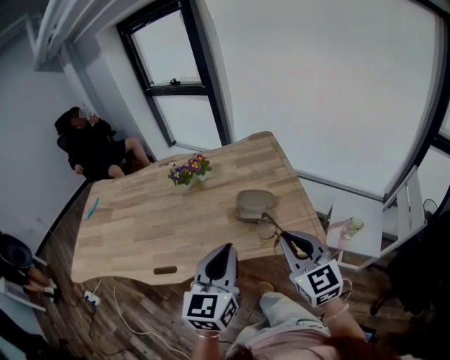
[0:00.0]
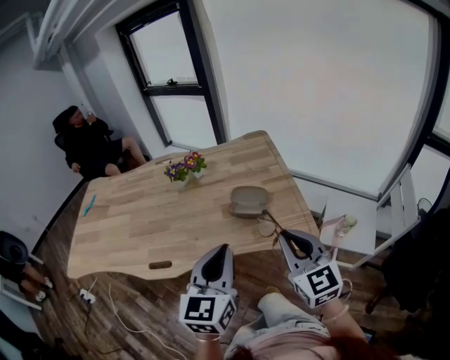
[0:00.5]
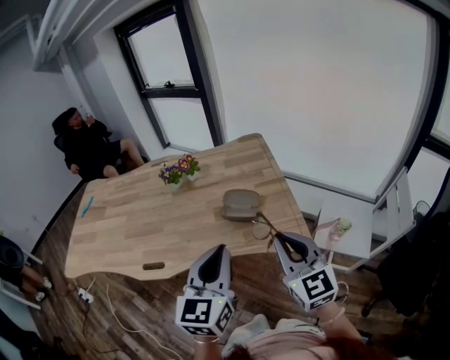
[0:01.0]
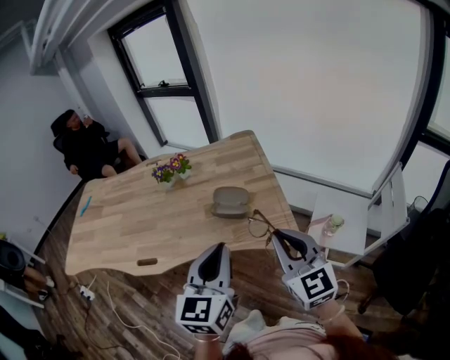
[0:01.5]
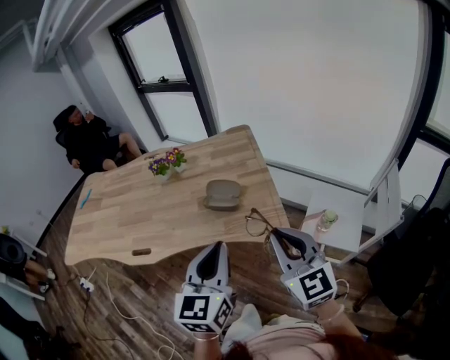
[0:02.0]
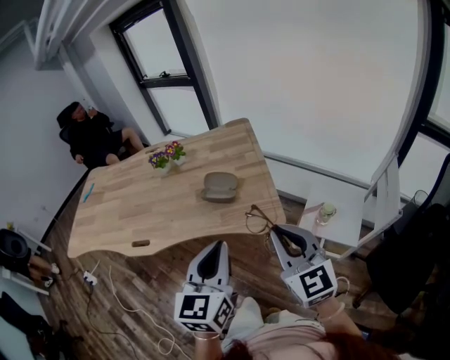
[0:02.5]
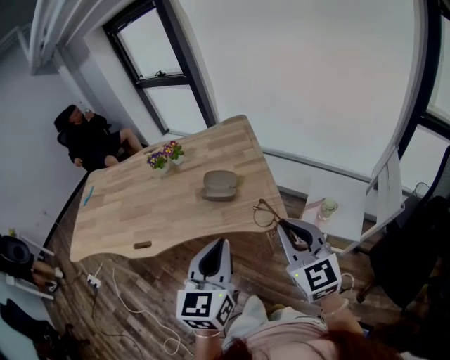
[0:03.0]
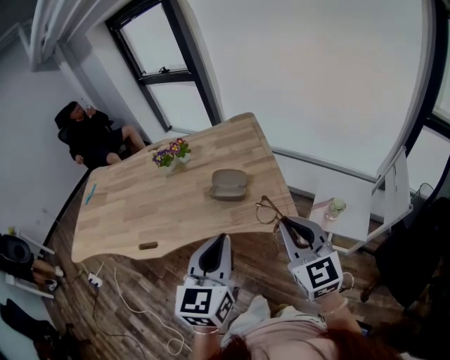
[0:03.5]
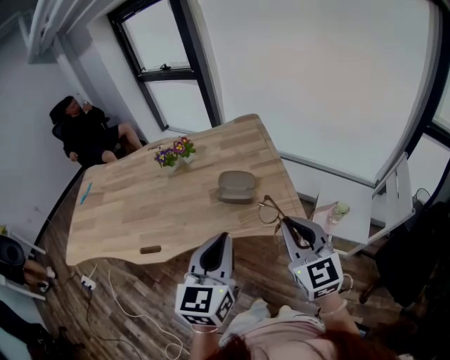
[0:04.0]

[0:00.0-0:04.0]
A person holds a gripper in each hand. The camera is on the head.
0:00.0 to 0:02.0: Both grippers travel together to the right and backward, some 15 cm.
0:02.0 to 0:04.0: The left gripper shifts about 5 cm to the left. The right gripper changes place by roughly 5 cm.

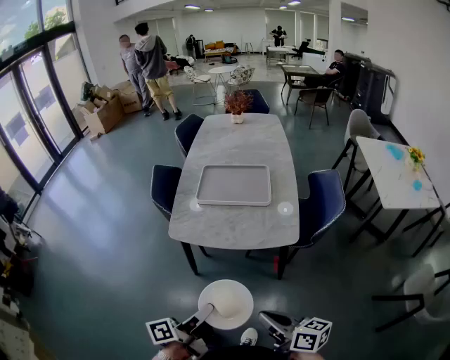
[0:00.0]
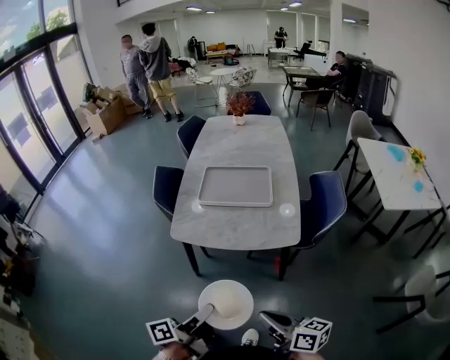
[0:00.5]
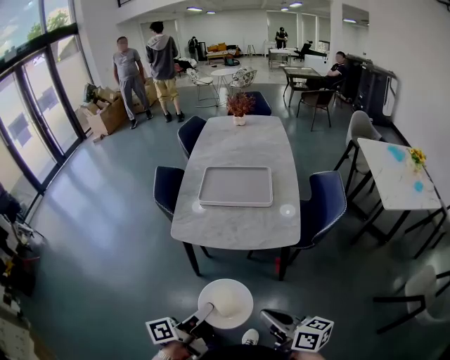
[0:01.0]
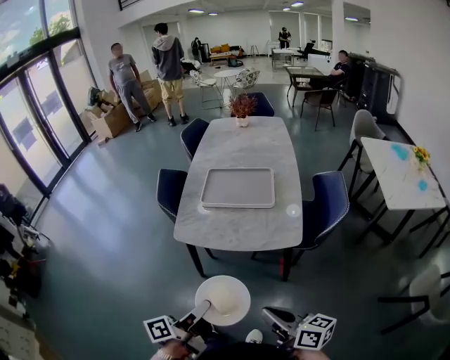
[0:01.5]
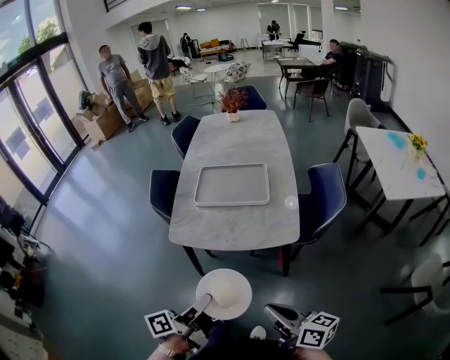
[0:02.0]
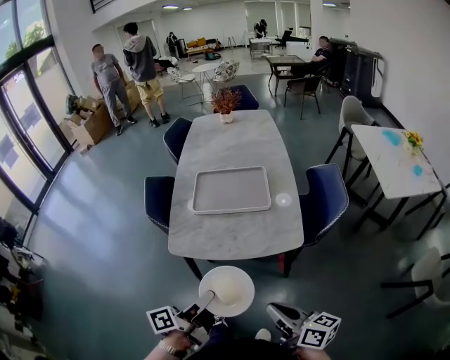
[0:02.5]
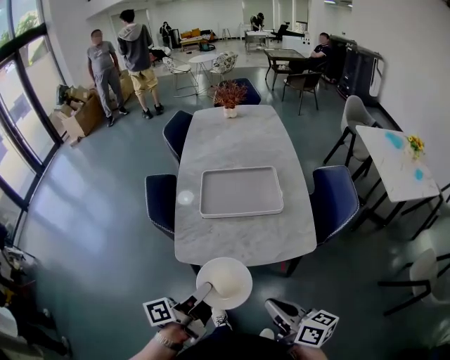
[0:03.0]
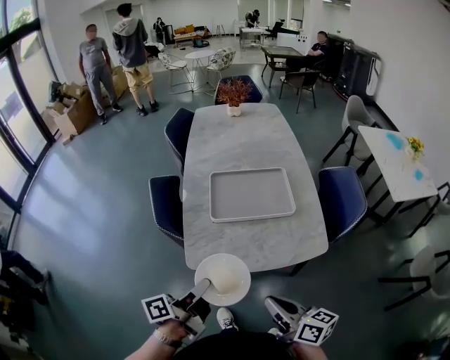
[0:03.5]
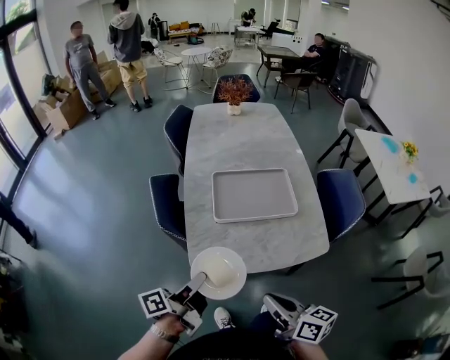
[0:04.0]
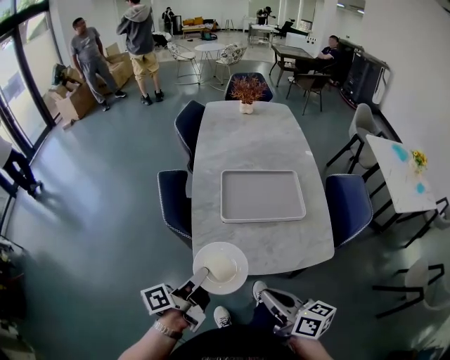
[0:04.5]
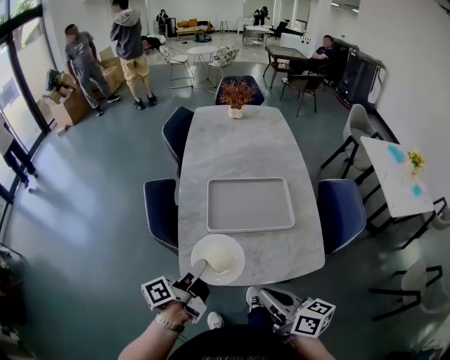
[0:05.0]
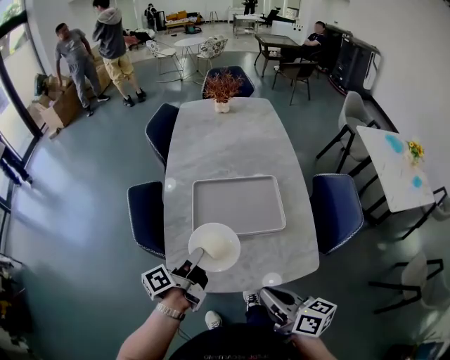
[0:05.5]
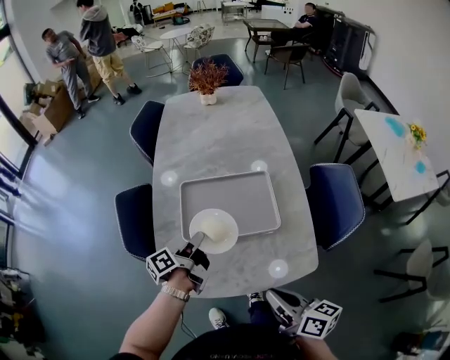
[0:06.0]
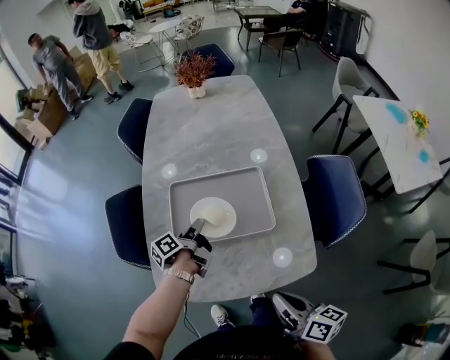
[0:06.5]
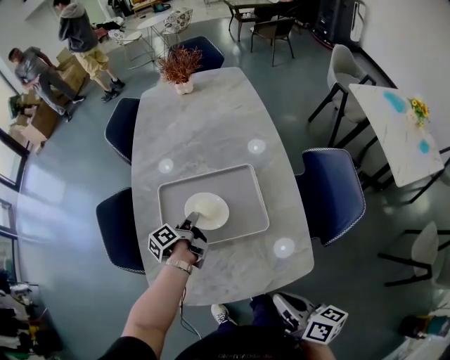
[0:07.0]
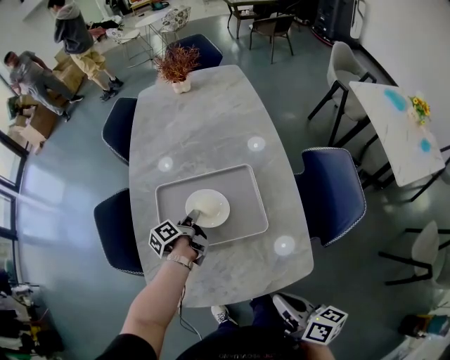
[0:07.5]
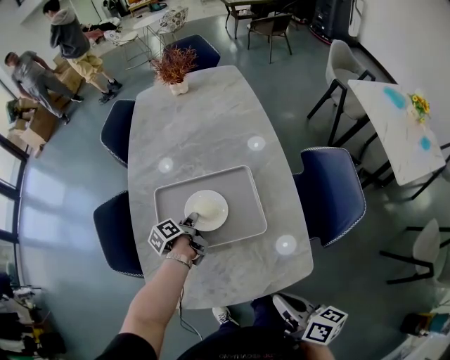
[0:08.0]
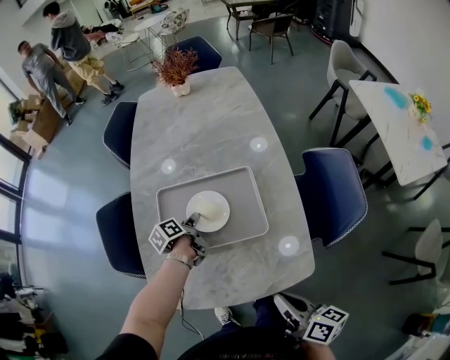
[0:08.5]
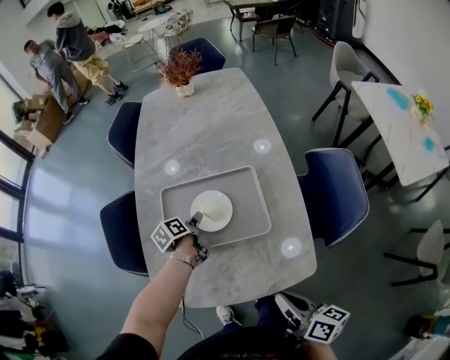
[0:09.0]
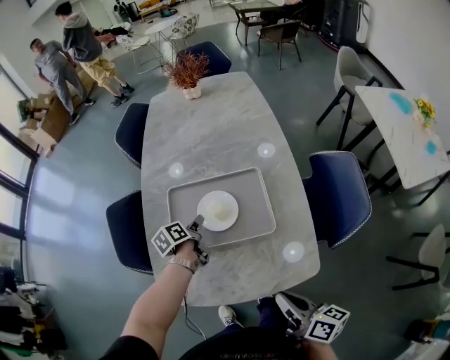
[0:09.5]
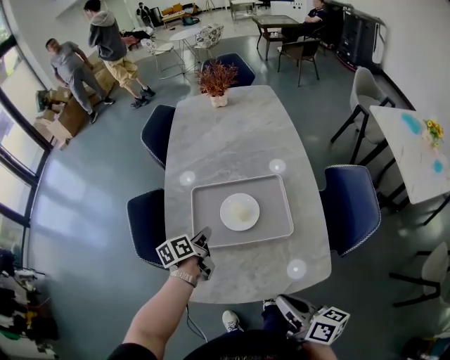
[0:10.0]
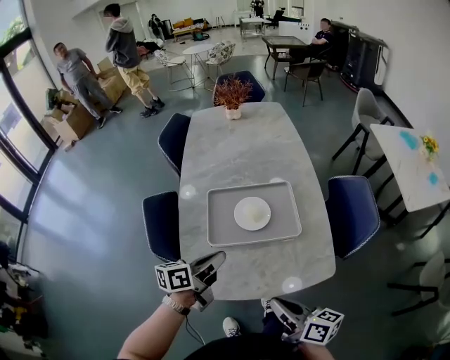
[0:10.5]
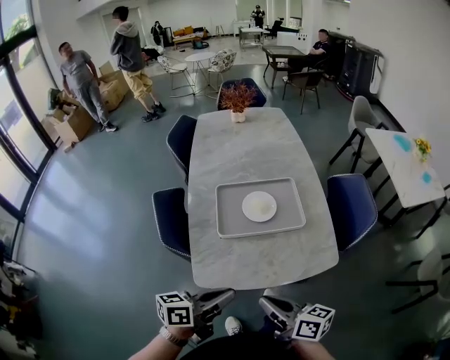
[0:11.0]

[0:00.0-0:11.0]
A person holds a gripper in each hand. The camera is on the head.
0:02.0 to 0:03.5: The right gripper changes place by some 20 cm.
0:03.5 to 0:05.5: The right gripper shifts by about 10 cm.
0:05.5 to 0:07.5: The right gripper ends up some 15 cm from where it was.
0:09.0 to 0:11.0: The right gripper changes place by about 20 cm.

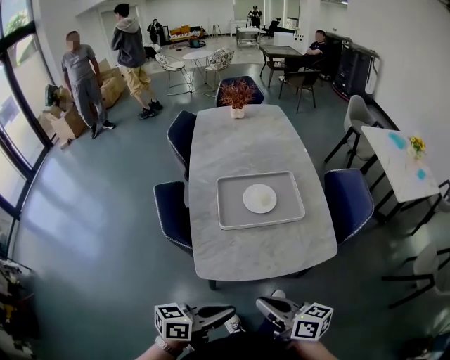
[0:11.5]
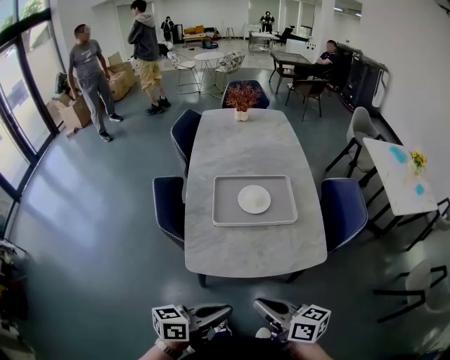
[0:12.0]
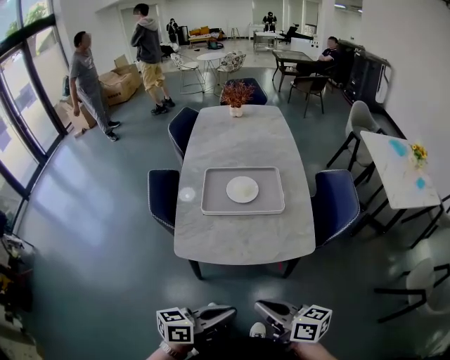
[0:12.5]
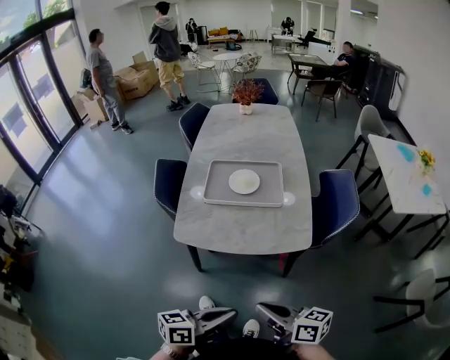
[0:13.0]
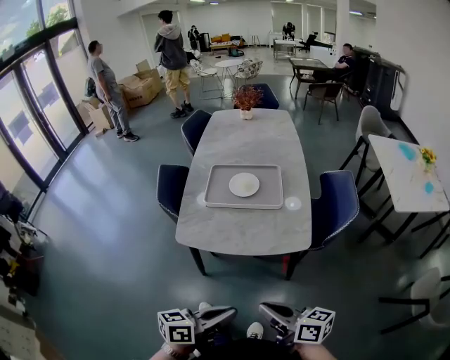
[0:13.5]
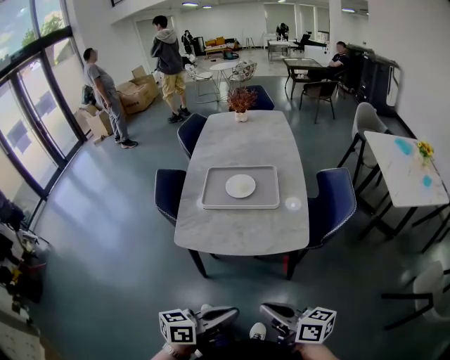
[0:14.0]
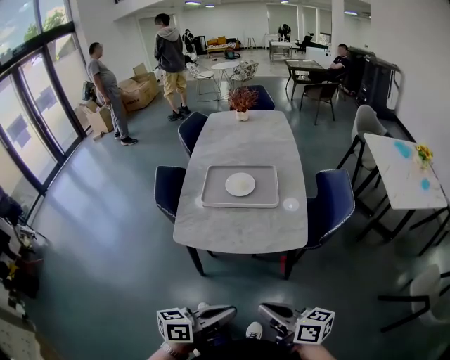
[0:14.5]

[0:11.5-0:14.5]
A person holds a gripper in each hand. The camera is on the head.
0:11.5 to 0:13.0: The right gripper changes place by some 20 cm.

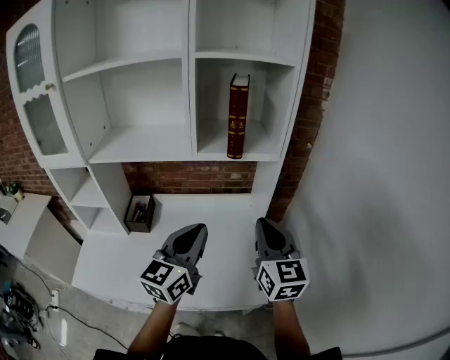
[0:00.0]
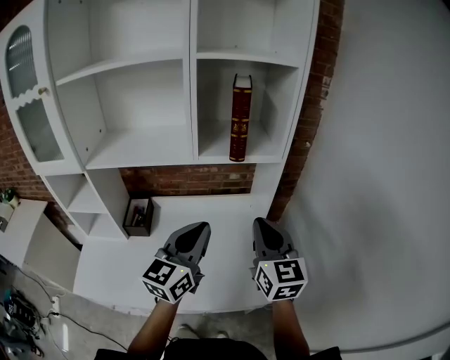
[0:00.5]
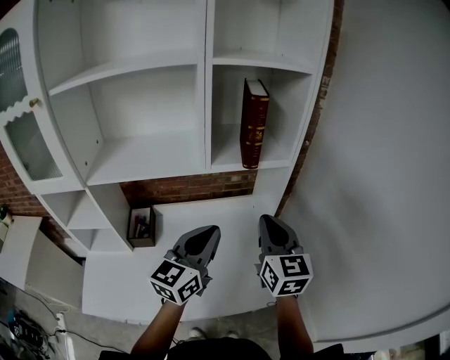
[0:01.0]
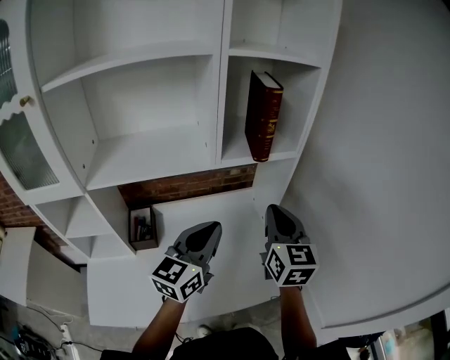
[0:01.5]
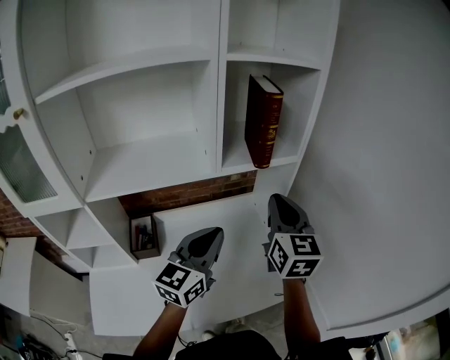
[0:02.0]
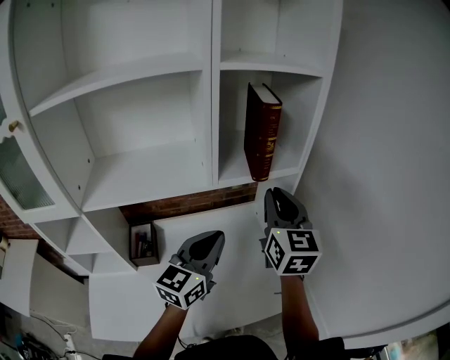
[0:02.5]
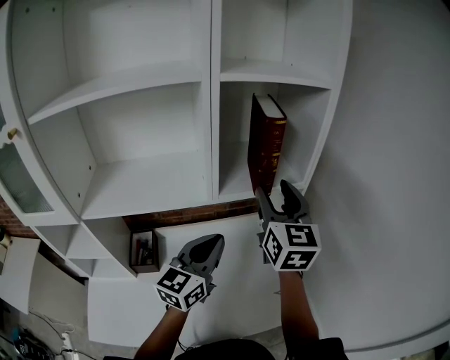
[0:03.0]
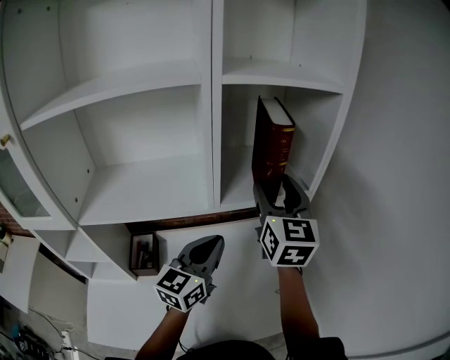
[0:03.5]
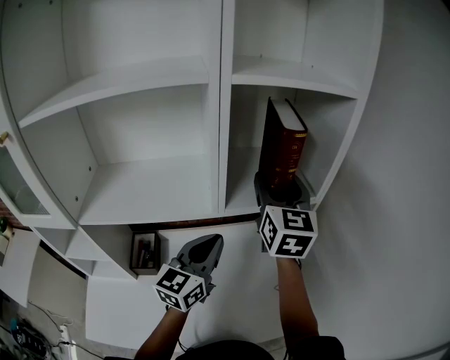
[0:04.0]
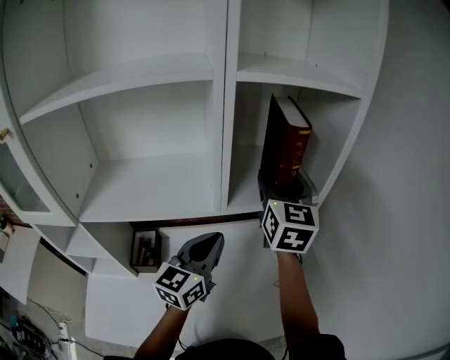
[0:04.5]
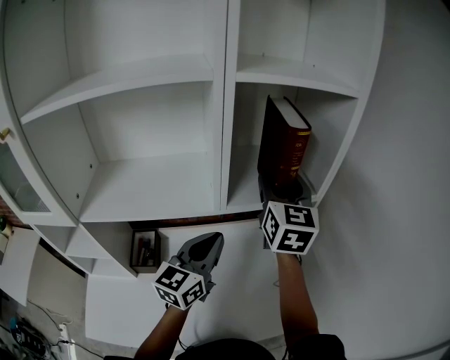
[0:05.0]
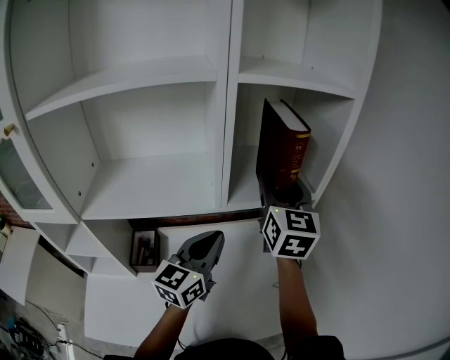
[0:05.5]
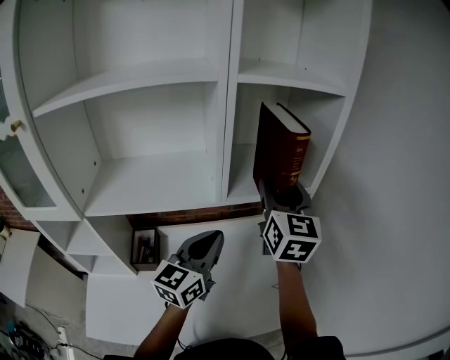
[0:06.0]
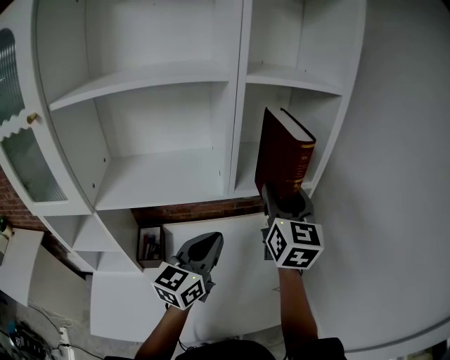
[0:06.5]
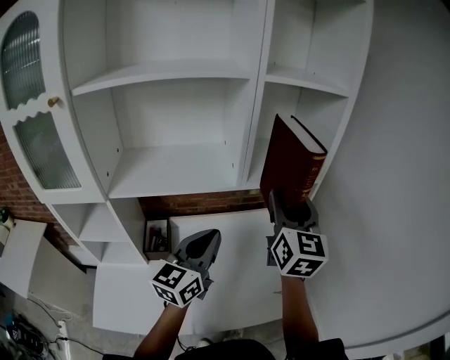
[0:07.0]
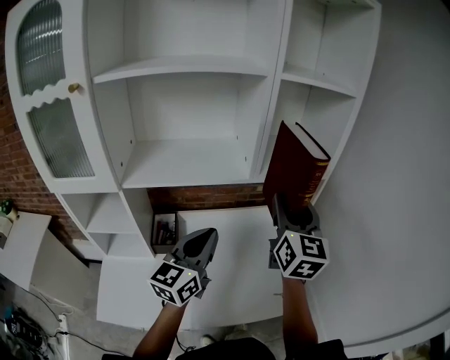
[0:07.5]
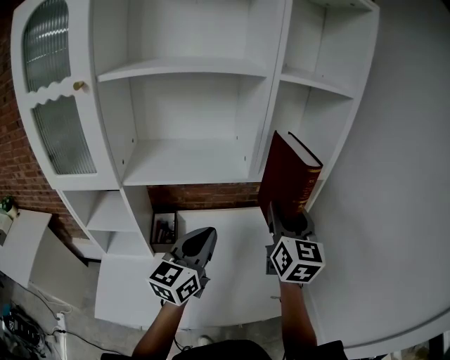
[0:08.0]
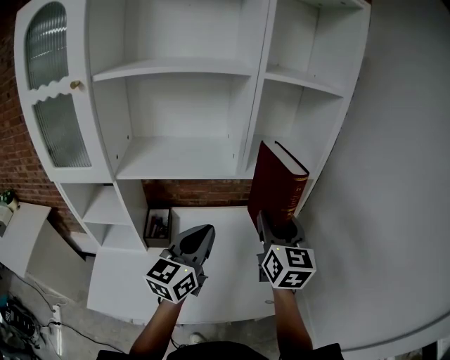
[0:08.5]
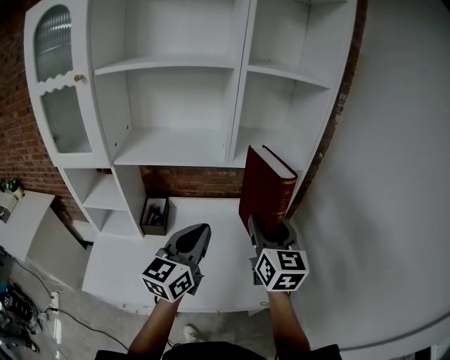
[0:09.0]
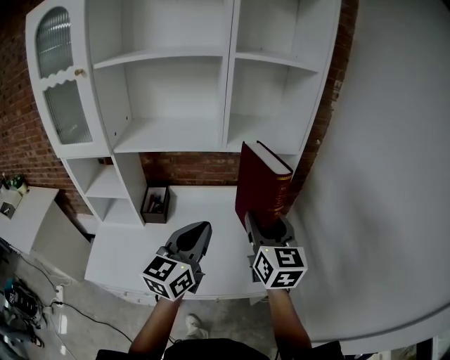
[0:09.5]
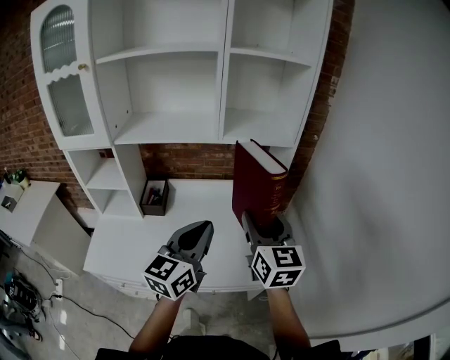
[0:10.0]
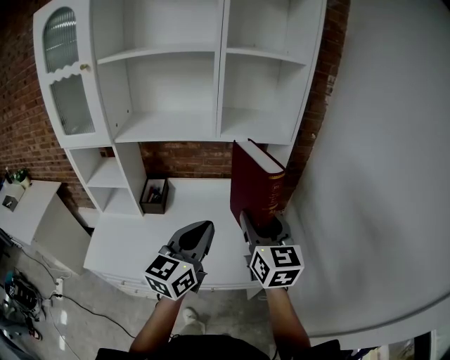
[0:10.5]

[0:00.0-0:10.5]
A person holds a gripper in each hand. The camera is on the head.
0:00.0 to 0:02.0: The left gripper shifts approximately 10 cm to the left; the right gripper heads to the left, forward and upward, covering roughly 10 cm.
0:02.0 to 0:04.0: The right gripper goes roughly 20 cm forward and upward, and opens. The left gripper is displaced forward by about 10 cm.
0:04.0 to 0:06.5: Both grippers travel together backward, approximately 10 cm.
0:06.5 to 0:08.5: The right gripper travels backward and downward by roughly 15 cm, while the left gripper travels backward by some 10 cm.
0:08.5 to 0:10.5: The two grippers go about 15 cm backward and to the right.
